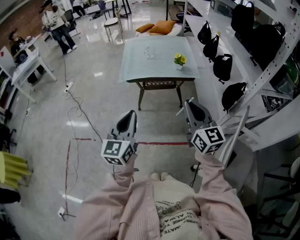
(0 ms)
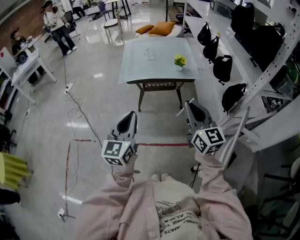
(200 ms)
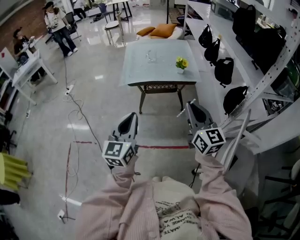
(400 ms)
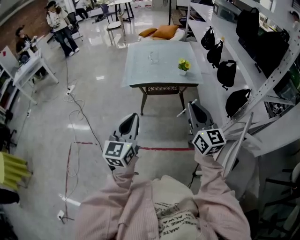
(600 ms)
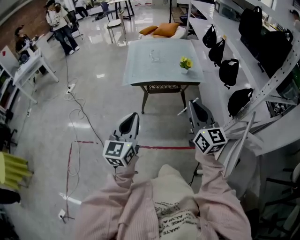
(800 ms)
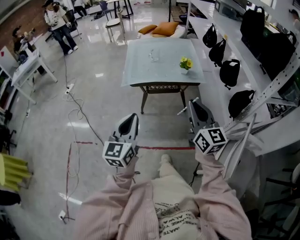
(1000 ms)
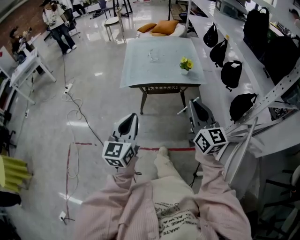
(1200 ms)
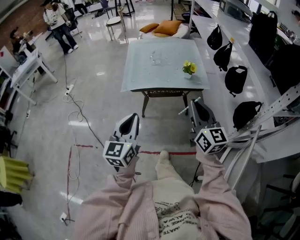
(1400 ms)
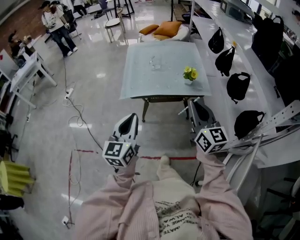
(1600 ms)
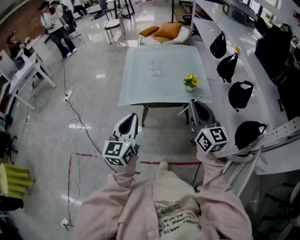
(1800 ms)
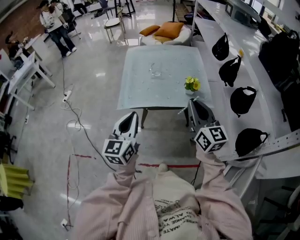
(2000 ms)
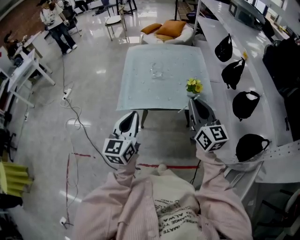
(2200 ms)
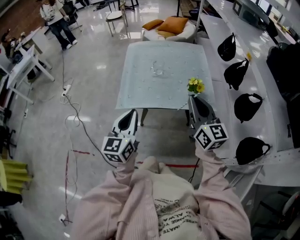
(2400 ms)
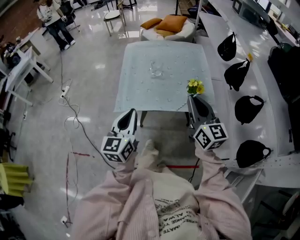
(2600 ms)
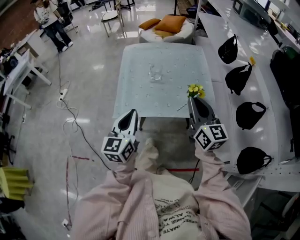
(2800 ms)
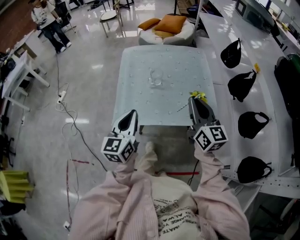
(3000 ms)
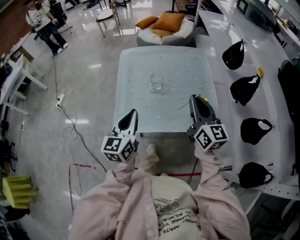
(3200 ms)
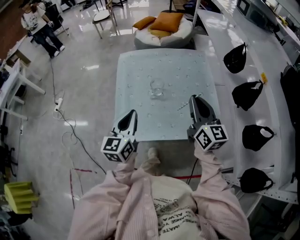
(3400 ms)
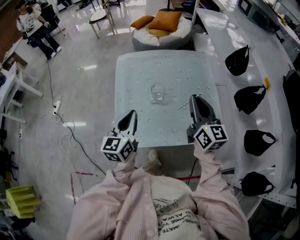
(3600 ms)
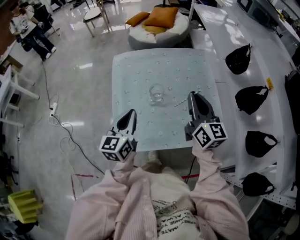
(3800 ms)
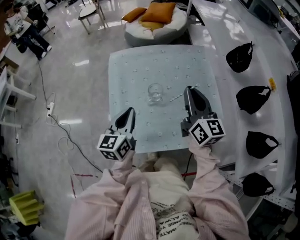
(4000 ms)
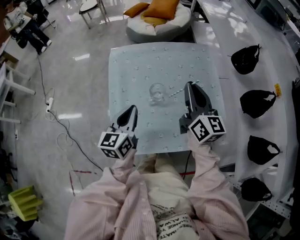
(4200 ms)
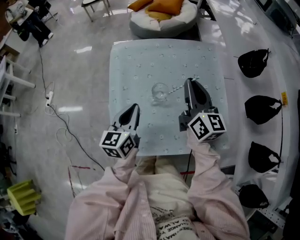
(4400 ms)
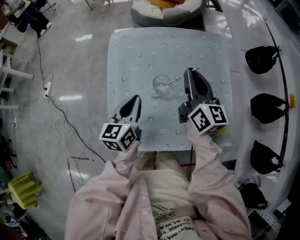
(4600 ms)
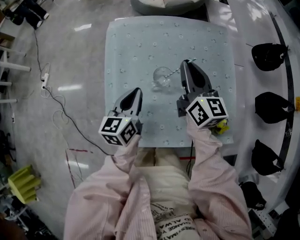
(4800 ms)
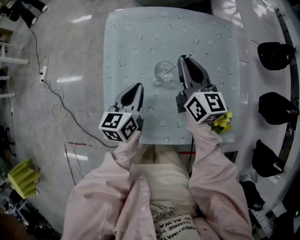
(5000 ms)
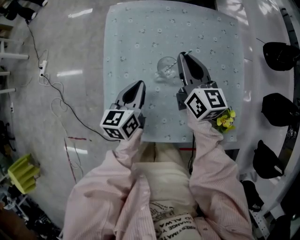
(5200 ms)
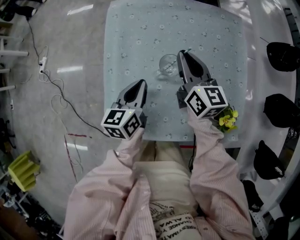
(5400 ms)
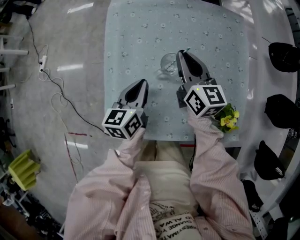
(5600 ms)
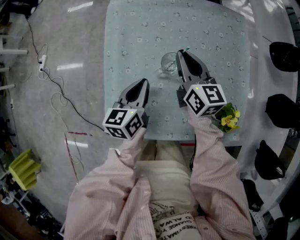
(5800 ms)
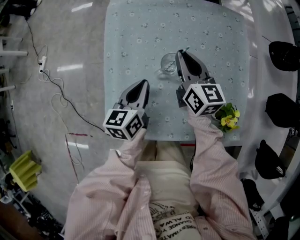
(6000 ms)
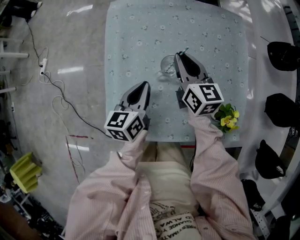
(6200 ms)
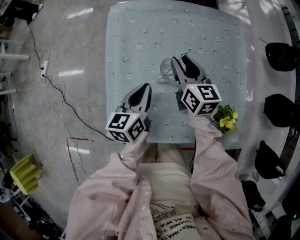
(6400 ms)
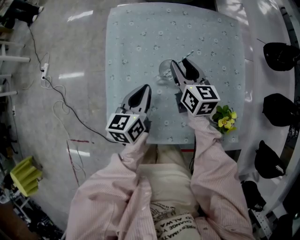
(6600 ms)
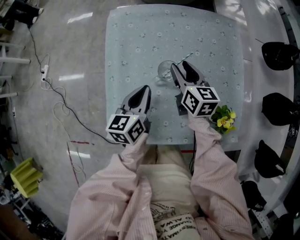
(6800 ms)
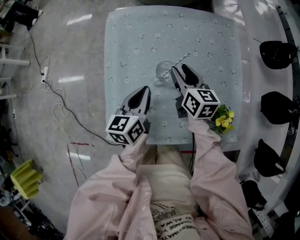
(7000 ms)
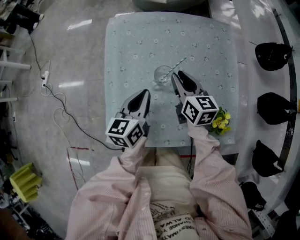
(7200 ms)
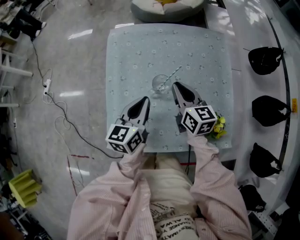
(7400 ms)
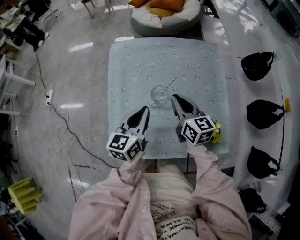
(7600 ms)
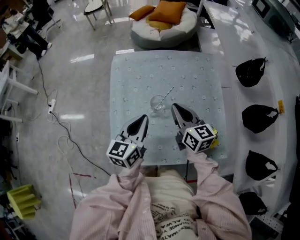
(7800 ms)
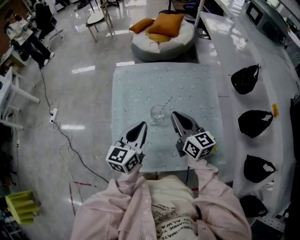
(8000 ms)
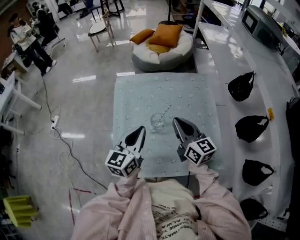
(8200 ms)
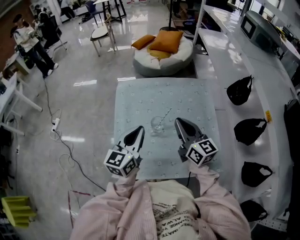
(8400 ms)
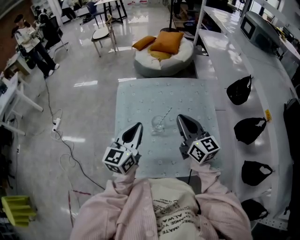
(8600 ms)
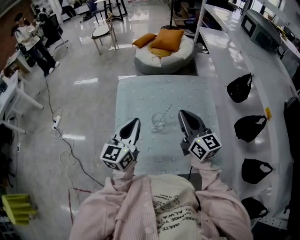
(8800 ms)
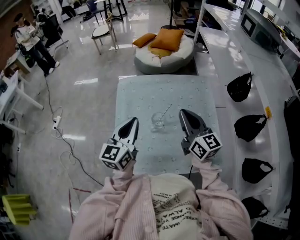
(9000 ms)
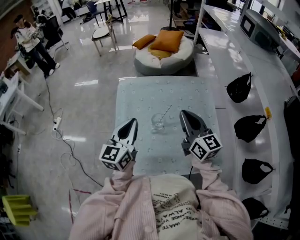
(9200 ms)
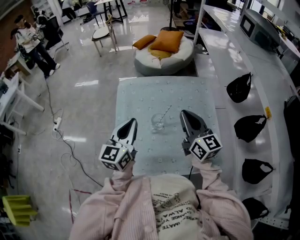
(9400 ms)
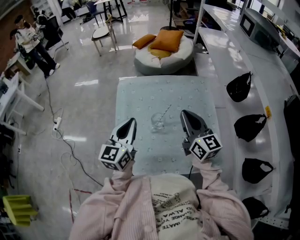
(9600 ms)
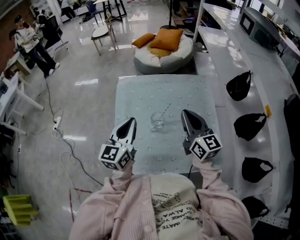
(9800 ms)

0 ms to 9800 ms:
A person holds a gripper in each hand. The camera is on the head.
0 ms to 1400 ms: Both grippers move forward, roughly 15 cm.
1400 ms to 2800 ms: The grippers both shift forward by approximately 30 cm.
2800 ms to 4200 ms: The grippers both shift forward by approximately 30 cm.
4200 ms to 5600 ms: The right gripper goes approximately 20 cm downward, to the left and forward; the left gripper goes approximately 15 cm downward.
5600 ms to 7000 ms: The right gripper opens.
7000 ms to 8400 ms: Both grippers travel together upward, about 20 cm. The left gripper swivels approximately 20 degrees. Meanwhile the right gripper swivels some 20 degrees, and closes.
8400 ms to 9800 ms: The grippers make only small movements.

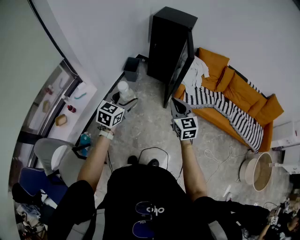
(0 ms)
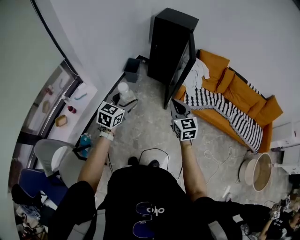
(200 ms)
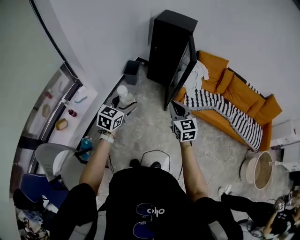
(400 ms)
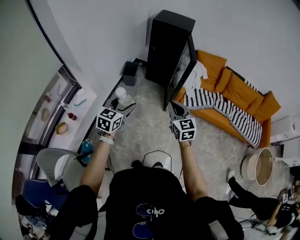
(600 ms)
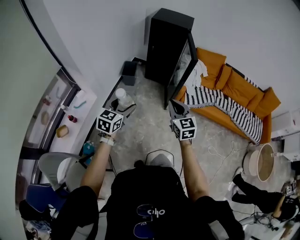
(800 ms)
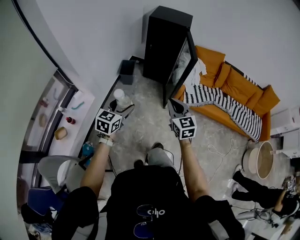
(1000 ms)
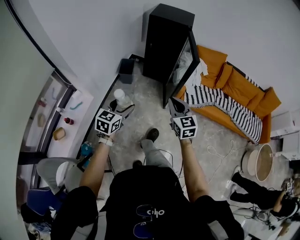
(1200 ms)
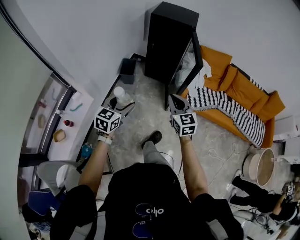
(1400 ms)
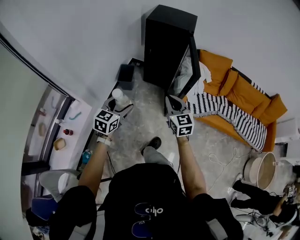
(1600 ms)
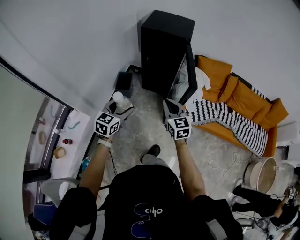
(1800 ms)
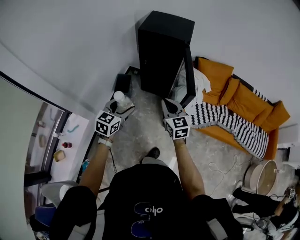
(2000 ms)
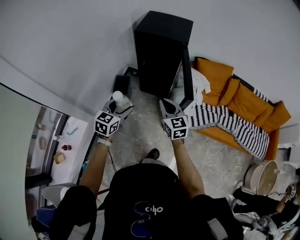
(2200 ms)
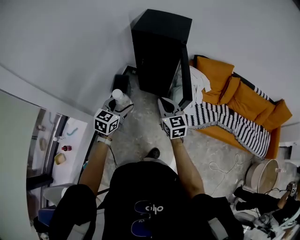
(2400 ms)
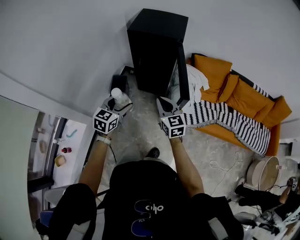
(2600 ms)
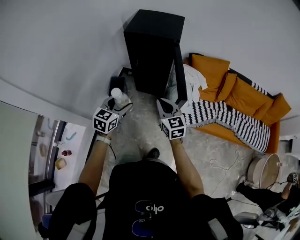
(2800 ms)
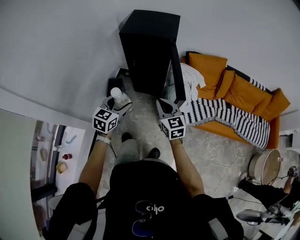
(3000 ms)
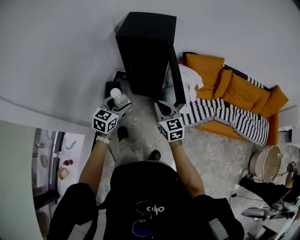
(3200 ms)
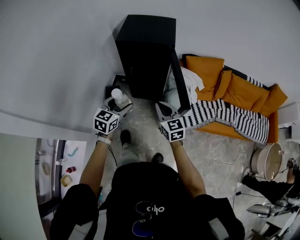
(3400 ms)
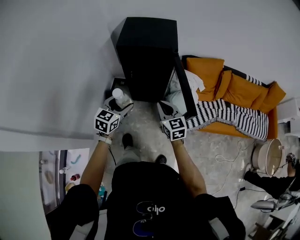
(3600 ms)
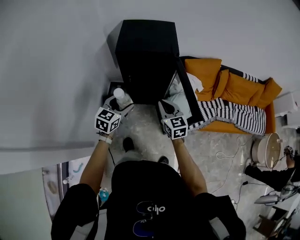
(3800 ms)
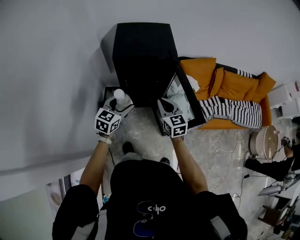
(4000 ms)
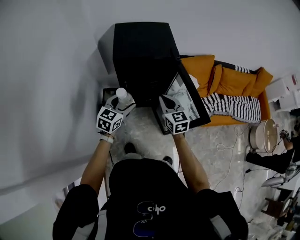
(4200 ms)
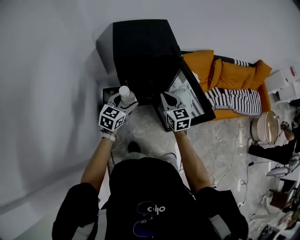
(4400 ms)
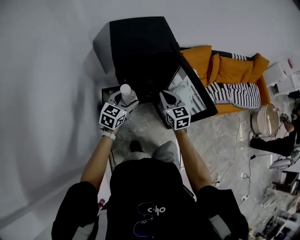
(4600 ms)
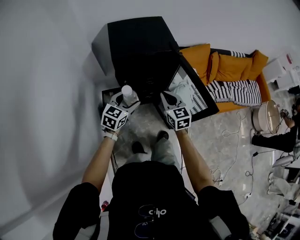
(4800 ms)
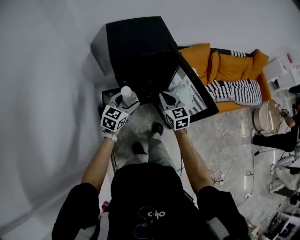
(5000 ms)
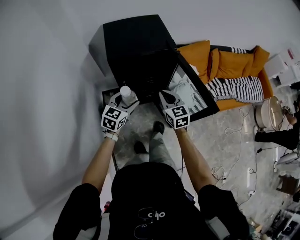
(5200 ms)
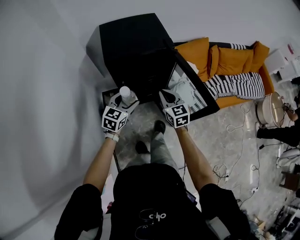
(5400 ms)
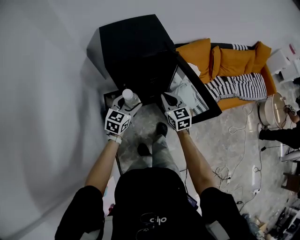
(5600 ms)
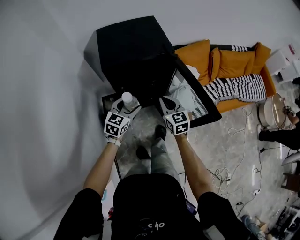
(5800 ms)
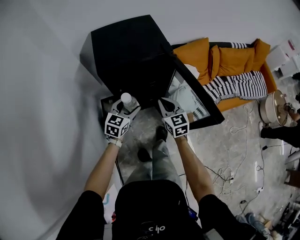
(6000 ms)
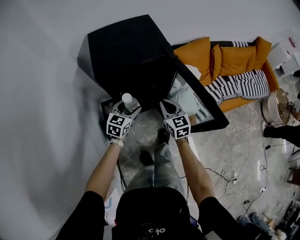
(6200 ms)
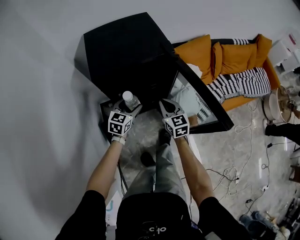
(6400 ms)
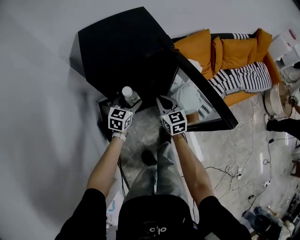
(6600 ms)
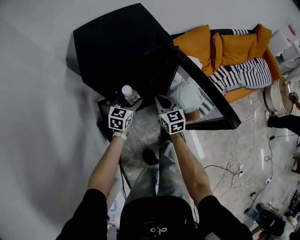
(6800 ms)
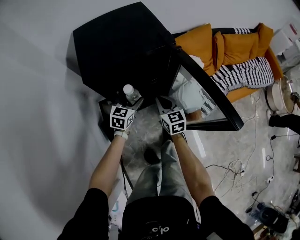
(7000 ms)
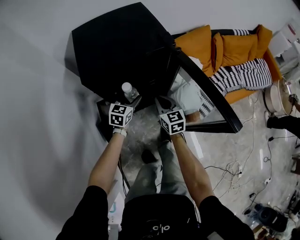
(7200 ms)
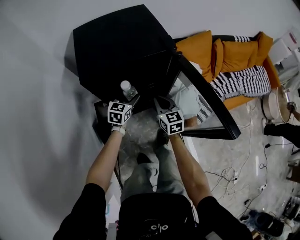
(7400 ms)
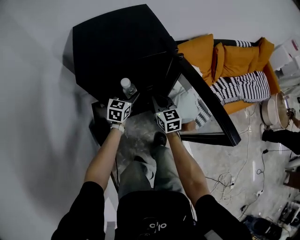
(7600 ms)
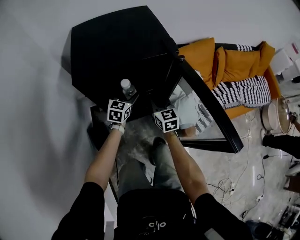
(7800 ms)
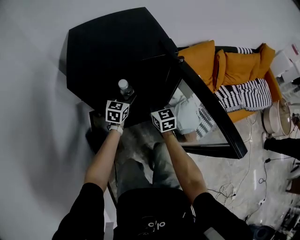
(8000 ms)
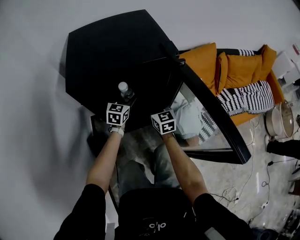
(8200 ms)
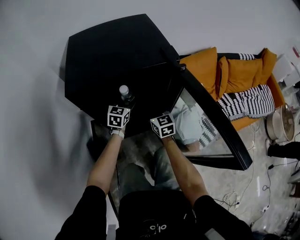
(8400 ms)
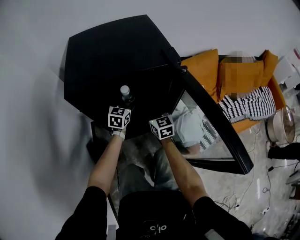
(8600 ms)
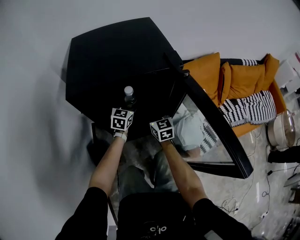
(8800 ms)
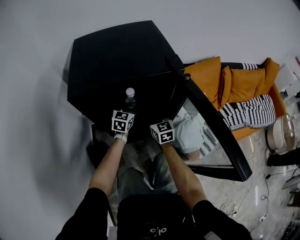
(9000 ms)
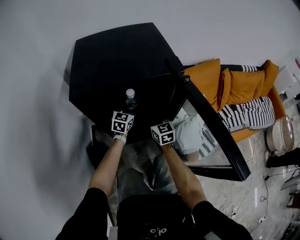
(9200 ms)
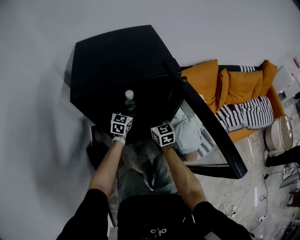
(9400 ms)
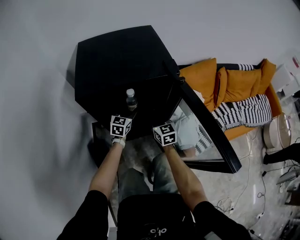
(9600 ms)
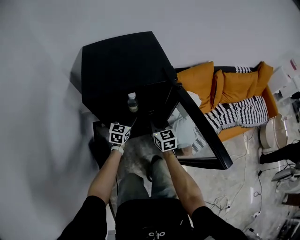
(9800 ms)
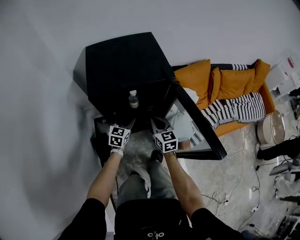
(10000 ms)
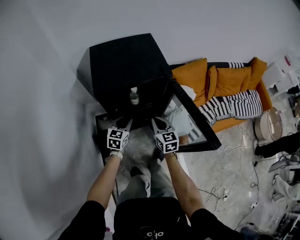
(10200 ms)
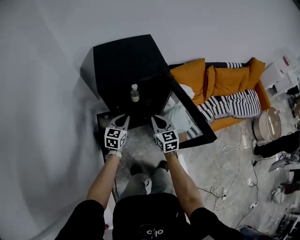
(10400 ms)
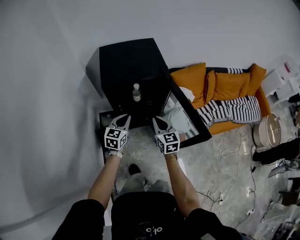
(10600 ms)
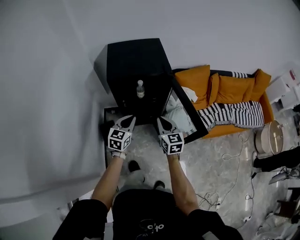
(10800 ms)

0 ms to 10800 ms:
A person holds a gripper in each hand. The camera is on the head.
0 ms to 1600 ms: Both grippers move forward, roughly 20 cm.
1600 ms to 3000 ms: The right gripper shifts about 15 cm forward. The left gripper shifts approximately 25 cm forward and to the right.
3000 ms to 4600 ms: The right gripper ends up roughly 25 cm from where it was, and swivels about 20 degrees; the left gripper ends up some 25 cm from where it was, and swivels about 30 degrees.
4600 ms to 6200 ms: Both grippers travel together downward and forward, about 15 cm.
6200 ms to 7800 ms: The right gripper moves downward and forward, some 20 cm. The left gripper moves forward and downward, roughly 20 cm.
7800 ms to 9200 ms: Both grippers travel together forward, roughly 5 cm.
9200 ms to 10800 ms: The grippers both shift backward and upward by some 40 cm. The left gripper closes up.

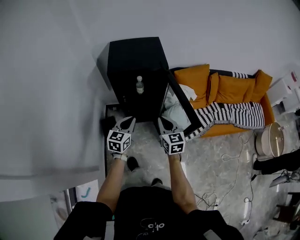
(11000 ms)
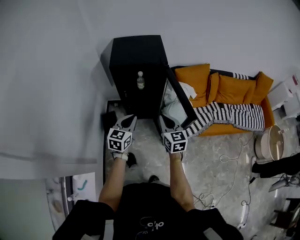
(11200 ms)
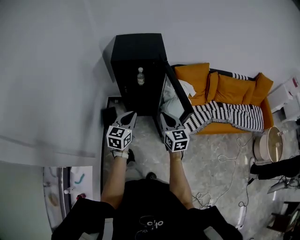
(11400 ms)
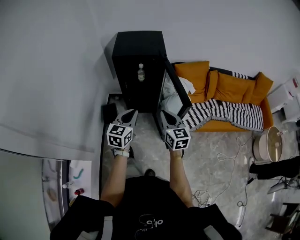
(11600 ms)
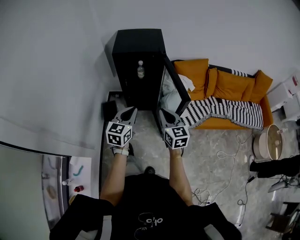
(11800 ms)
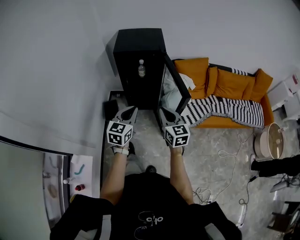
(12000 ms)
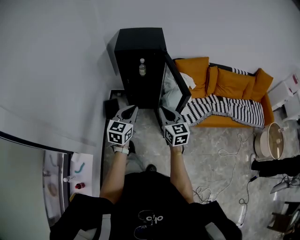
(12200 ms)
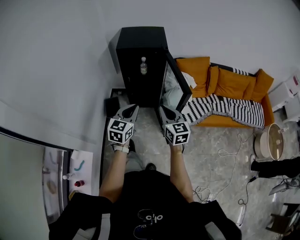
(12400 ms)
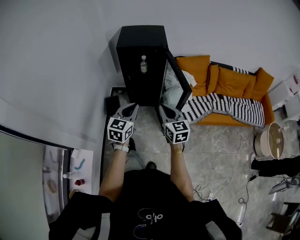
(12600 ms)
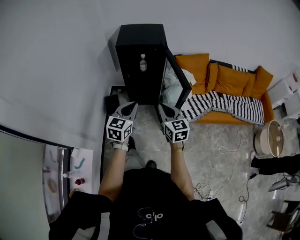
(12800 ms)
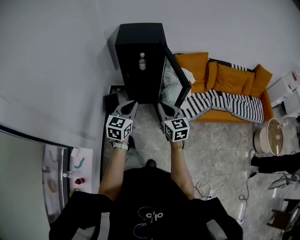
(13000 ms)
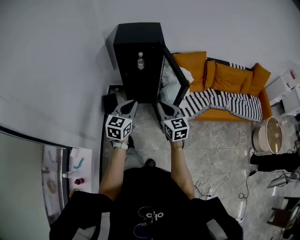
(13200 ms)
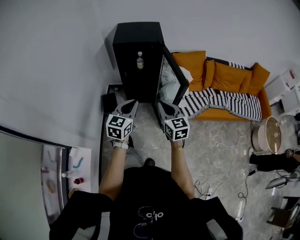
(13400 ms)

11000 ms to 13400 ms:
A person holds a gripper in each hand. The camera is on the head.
11000 ms to 12200 ms: The grippers both shift backward by some 20 cm.
12200 ms to 13400 ms: The grippers stay close to where they were, moving slightly.

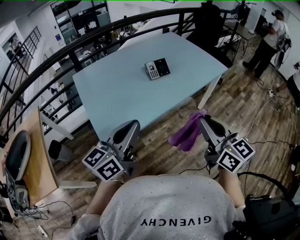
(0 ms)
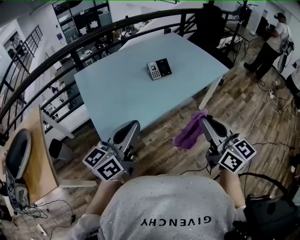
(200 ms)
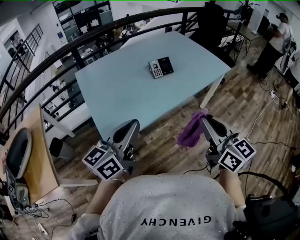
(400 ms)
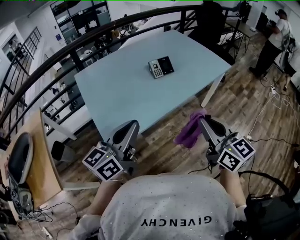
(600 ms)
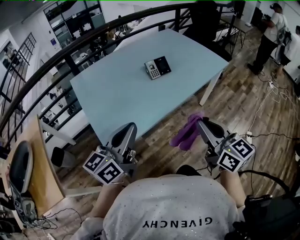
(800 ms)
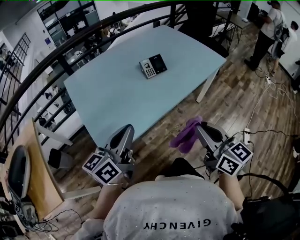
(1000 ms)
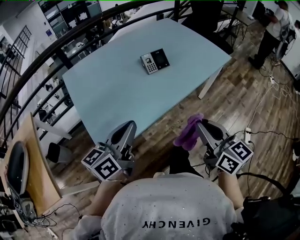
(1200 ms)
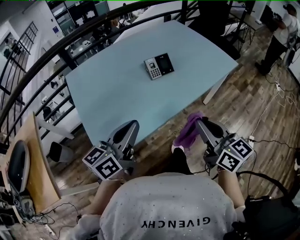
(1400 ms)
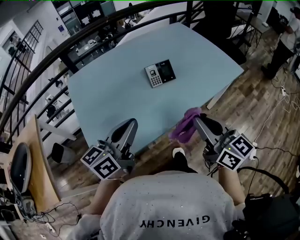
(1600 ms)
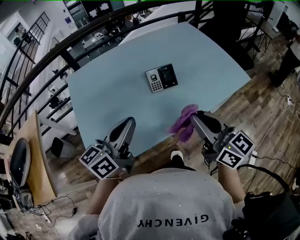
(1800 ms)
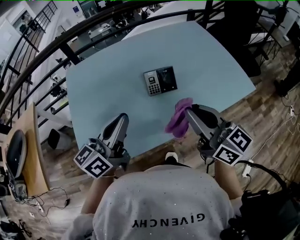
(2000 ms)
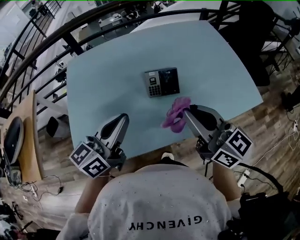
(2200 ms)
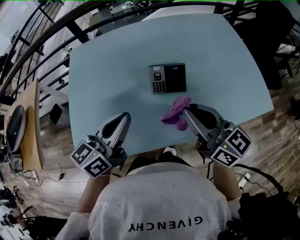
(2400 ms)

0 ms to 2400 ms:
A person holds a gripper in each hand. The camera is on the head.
0 ms to 1200 ms: The left gripper heads forward and downward, covering some 10 cm. Meanwhile the right gripper moves downward and forward, roughly 10 cm.
1200 ms to 2400 ms: The left gripper moves about 25 cm, and changes its angle by approximately 20 degrees, while the right gripper moves approximately 35 cm, and rotates about 40 degrees.
